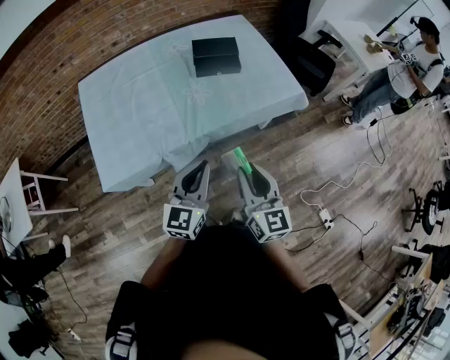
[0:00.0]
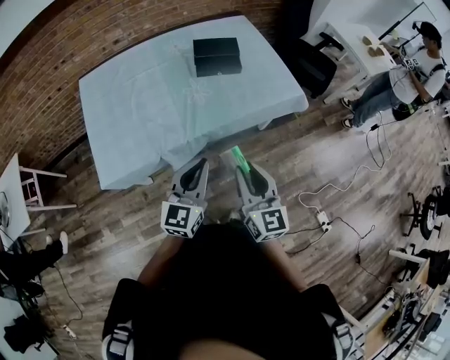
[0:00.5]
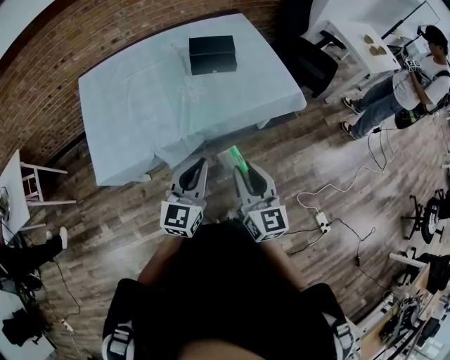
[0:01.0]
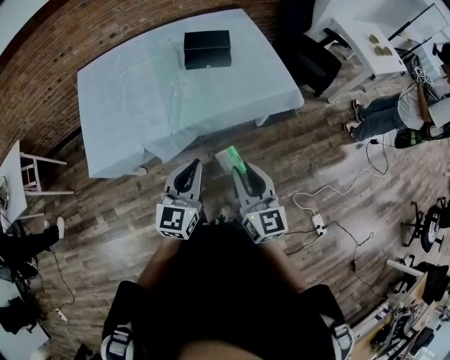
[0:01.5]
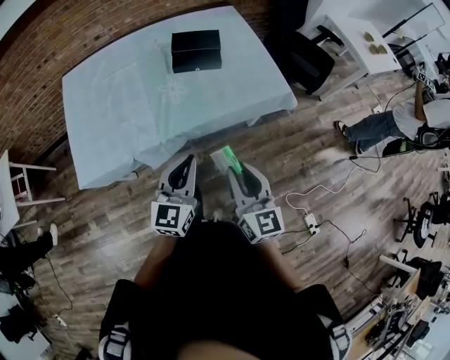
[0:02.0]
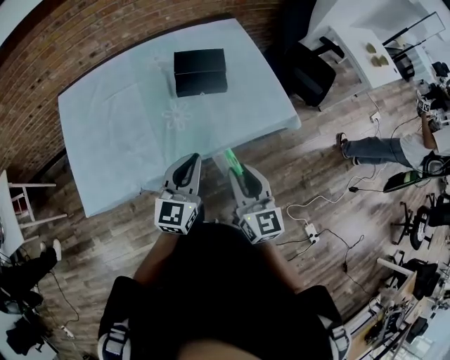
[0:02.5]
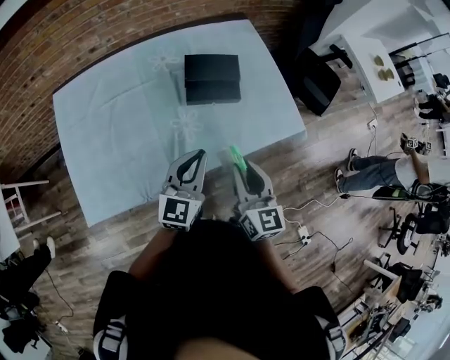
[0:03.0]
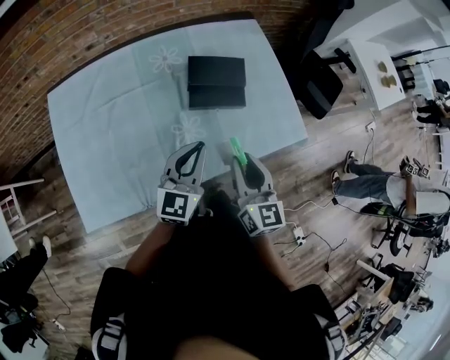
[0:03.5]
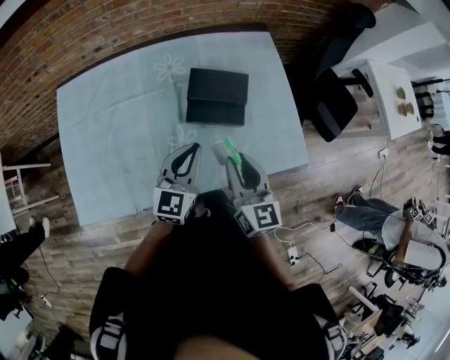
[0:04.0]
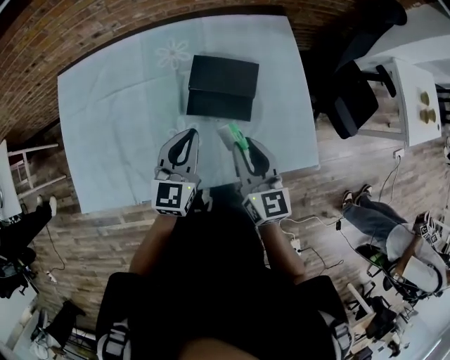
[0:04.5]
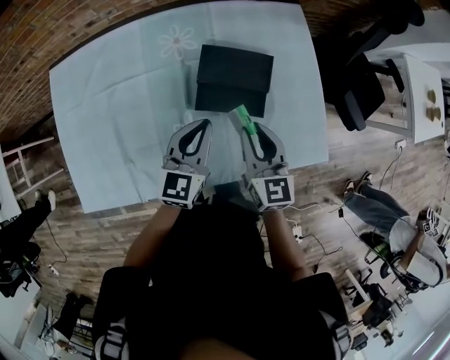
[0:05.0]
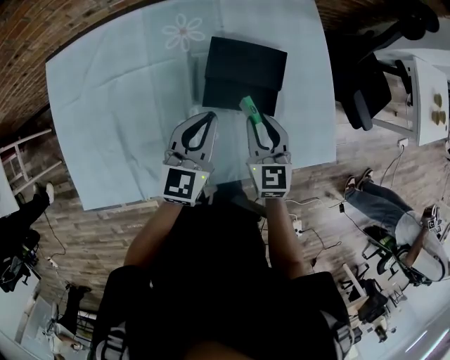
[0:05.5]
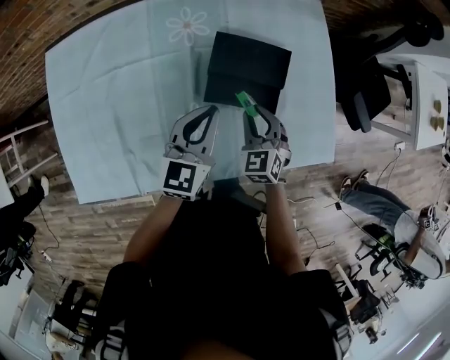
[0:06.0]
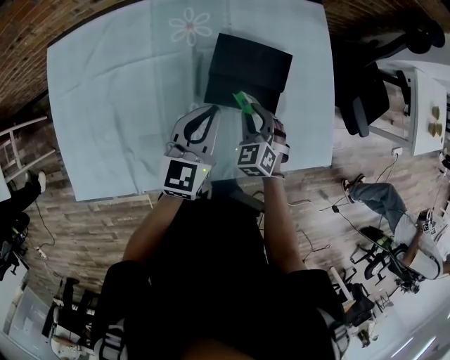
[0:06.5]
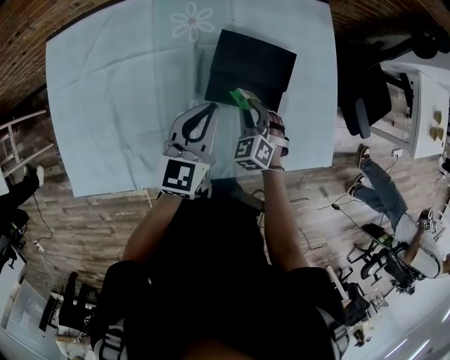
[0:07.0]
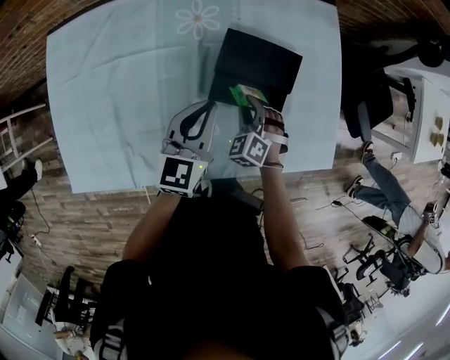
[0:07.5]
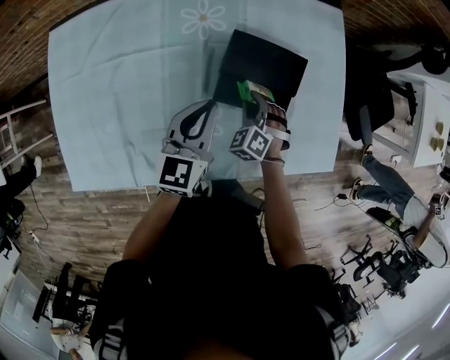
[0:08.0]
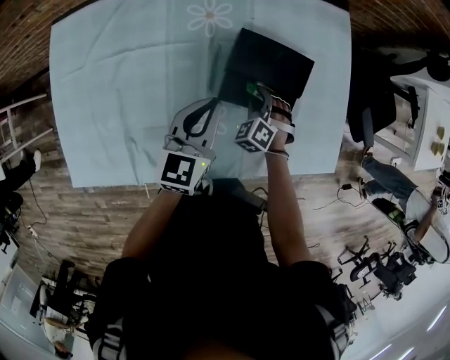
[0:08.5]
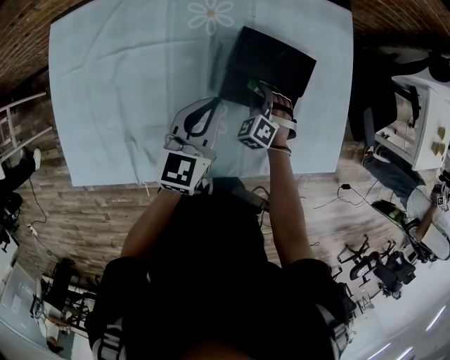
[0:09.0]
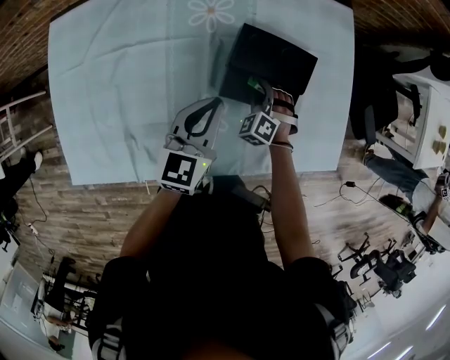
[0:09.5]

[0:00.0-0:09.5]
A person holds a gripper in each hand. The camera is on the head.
0:00.0 to 0:02.0: The left gripper goes about 10 cm to the right and forward. Meanwhile the right gripper heads to the right, covering approximately 10 cm.
0:02.0 to 0:04.0: The grippers both shift forward by approximately 35 cm.
0:04.0 to 0:05.5: The right gripper shifts approximately 20 cm downward and forward, and turns by about 20 degrees. Meanwhile the left gripper heads forward and downward, covering some 15 cm.
0:05.5 to 0:07.5: The right gripper is displaced downward by approximately 10 cm, and twists approximately 40 degrees counterclockwise, seen from behind.
0:07.5 to 0:09.5: The right gripper heads downward, covering about 5 cm.

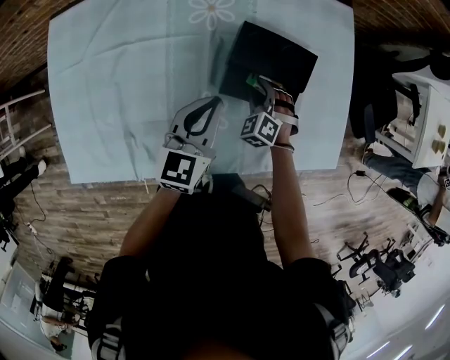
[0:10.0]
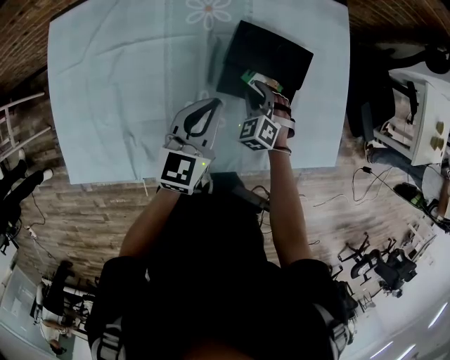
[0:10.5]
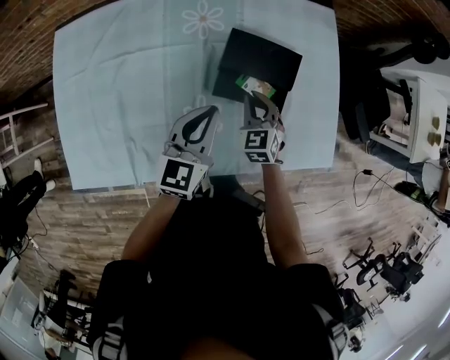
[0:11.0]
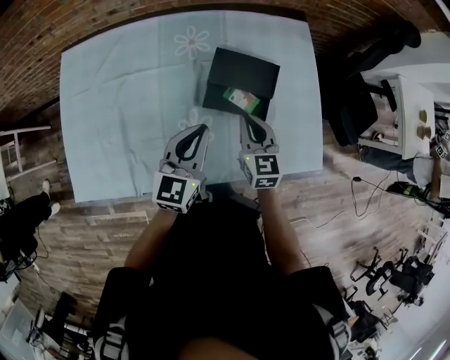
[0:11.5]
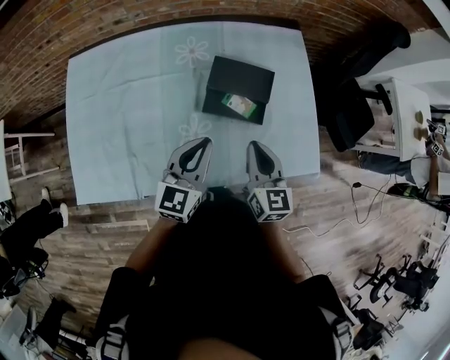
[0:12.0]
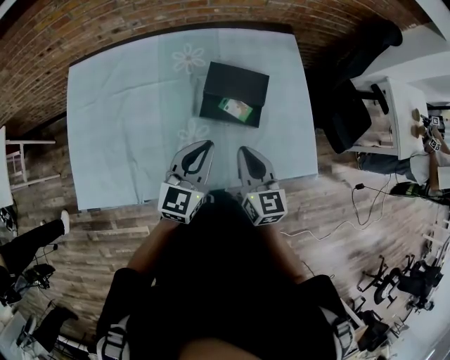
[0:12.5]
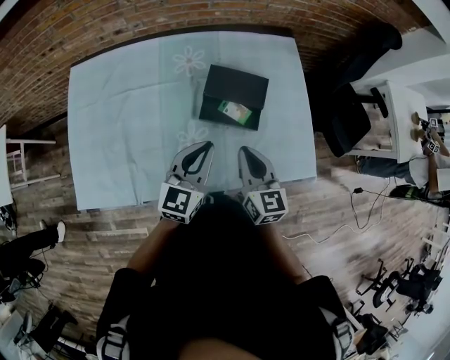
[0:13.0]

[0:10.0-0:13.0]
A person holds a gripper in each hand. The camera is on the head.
0:10.0 to 0:11.5: The right gripper moves upward and backward, some 20 cm, rotates around the line of its fingers by some 50 degrees, clockwise from behind, and closes. The left gripper is displaced backward and upward by about 10 cm.
0:11.5 to 0:13.0: The right gripper travels backward and upward by roughly 10 cm; the left gripper moves approximately 5 cm.

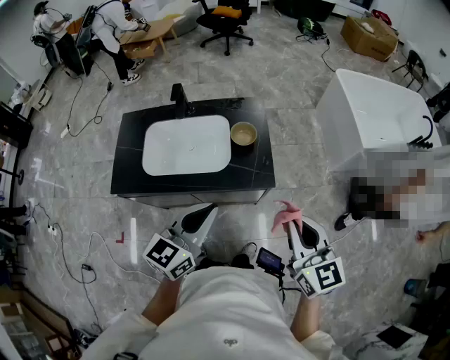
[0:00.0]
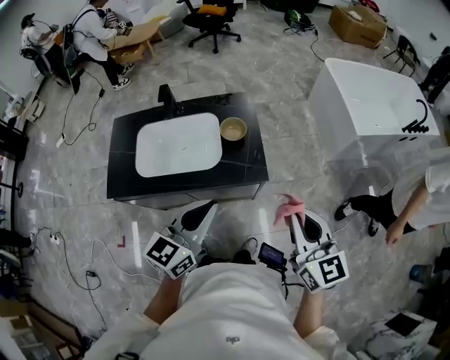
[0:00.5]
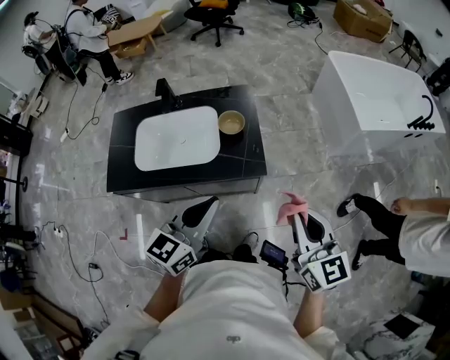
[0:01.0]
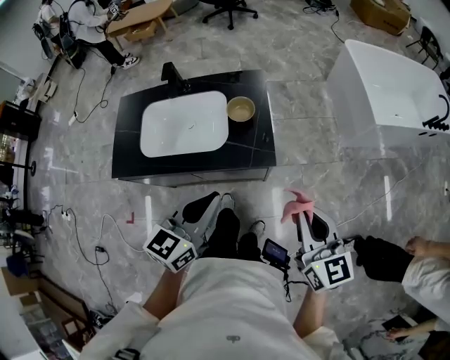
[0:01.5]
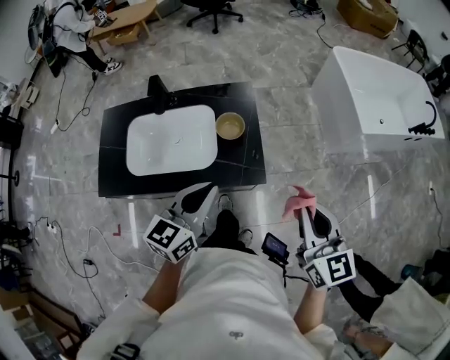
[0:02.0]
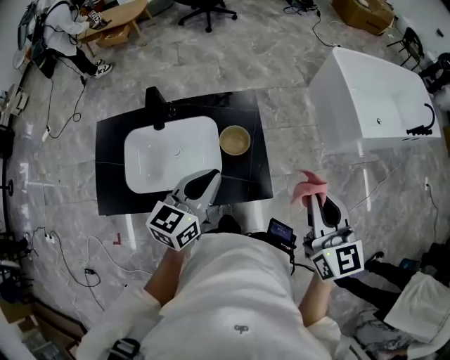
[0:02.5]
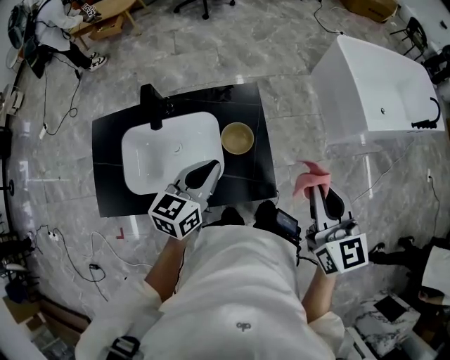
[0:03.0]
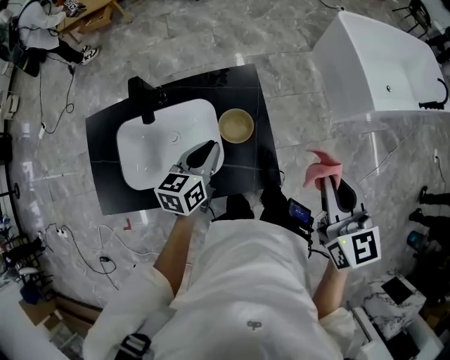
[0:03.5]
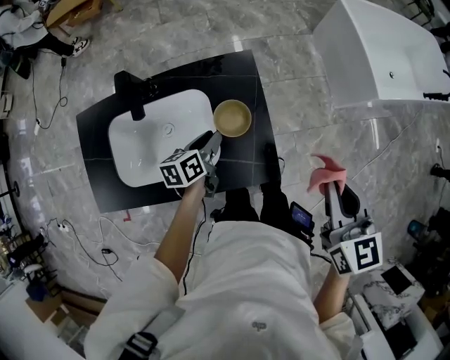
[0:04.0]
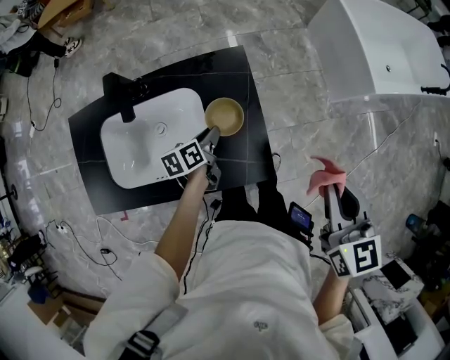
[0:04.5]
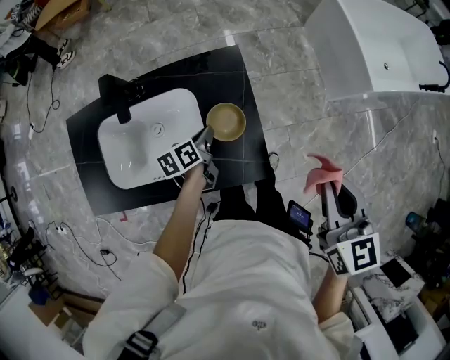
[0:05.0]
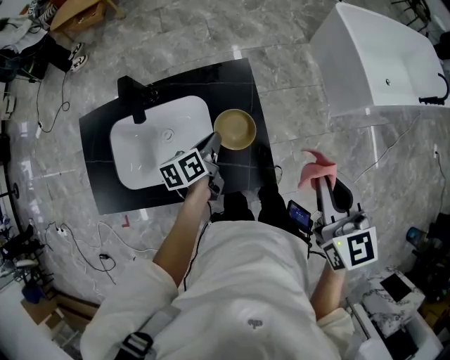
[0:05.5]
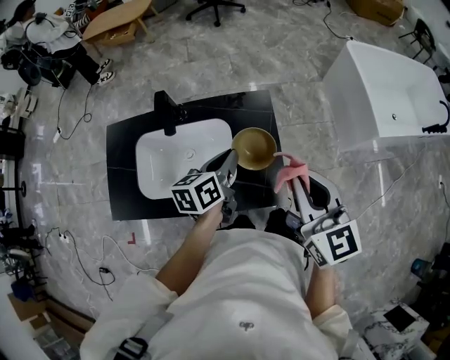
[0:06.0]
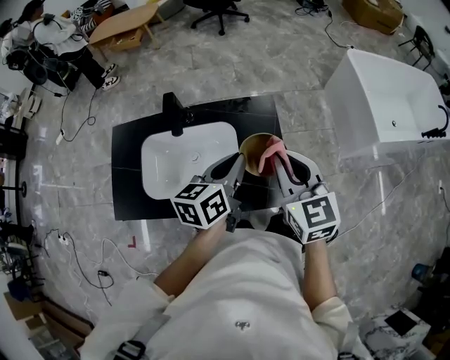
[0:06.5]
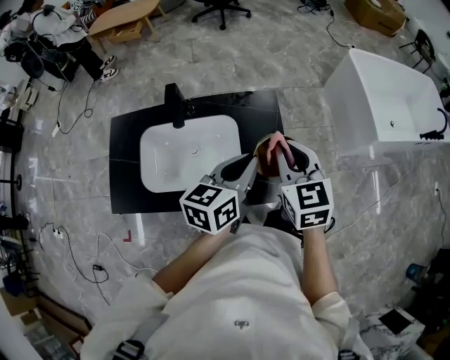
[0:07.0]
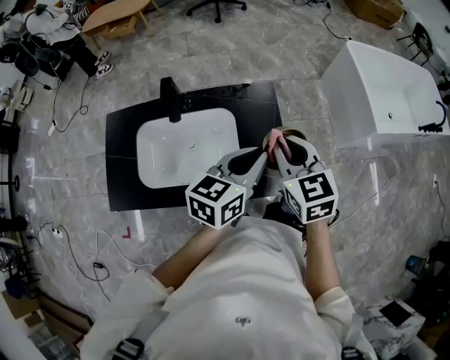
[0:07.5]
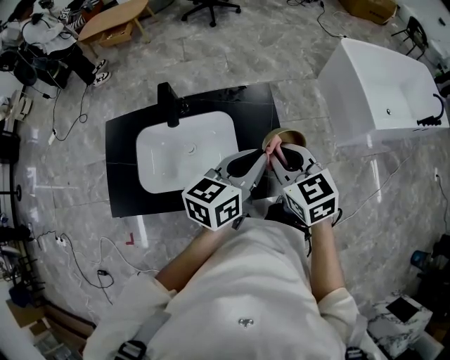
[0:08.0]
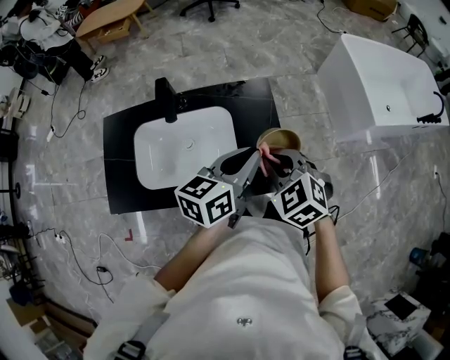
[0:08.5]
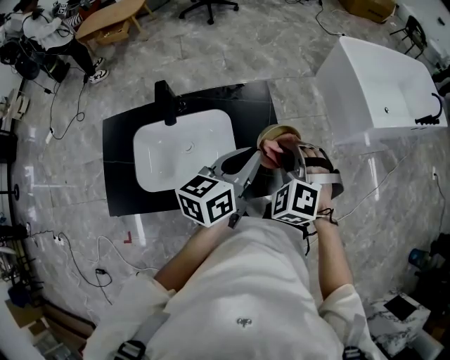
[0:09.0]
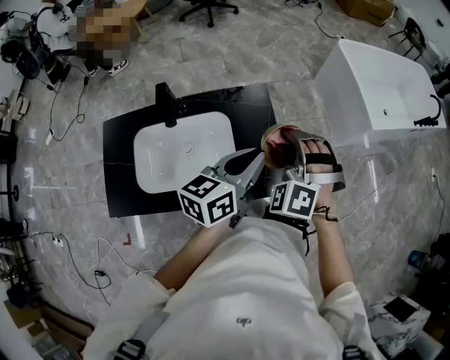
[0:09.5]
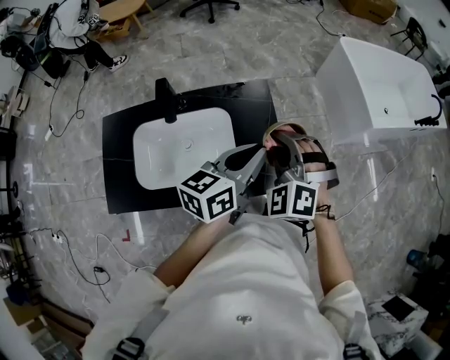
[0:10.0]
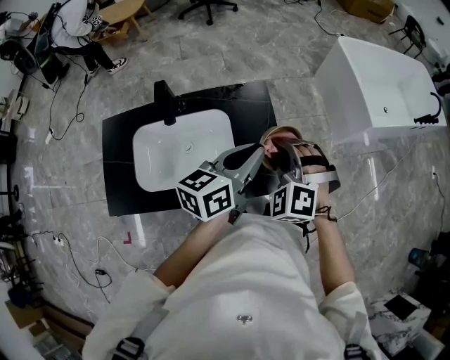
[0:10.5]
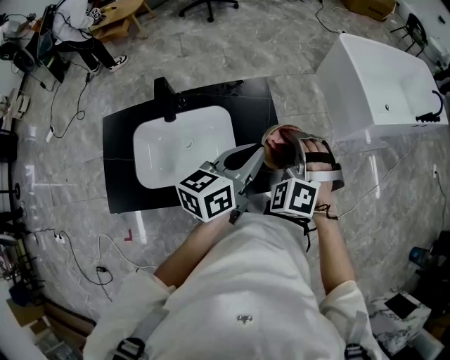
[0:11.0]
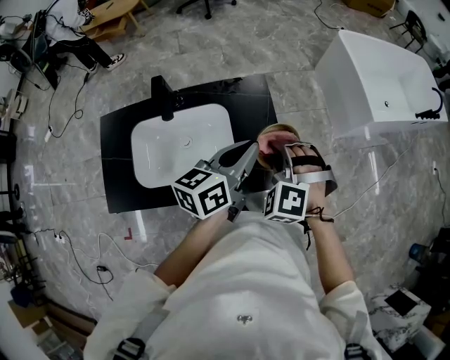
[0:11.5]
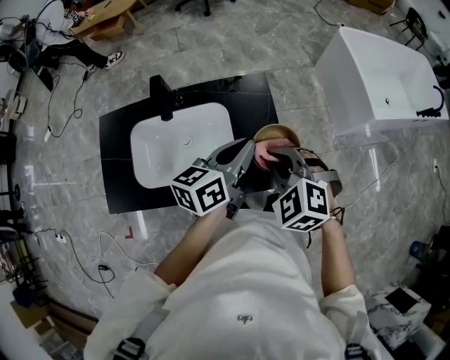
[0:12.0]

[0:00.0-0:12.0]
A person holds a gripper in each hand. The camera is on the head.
0:00.0 to 0:02.0: The right gripper travels forward and to the right by some 10 cm. The left gripper shifts roughly 10 cm forward.
0:02.0 to 0:04.0: The left gripper moves downward and forward, about 30 cm, and swivels approximately 40 degrees, while the right gripper shifts approximately 15 cm forward.
0:04.0 to 0:06.0: The left gripper shifts approximately 15 cm upward. The right gripper moves to the left, approximately 10 cm.
0:06.0 to 0:08.0: The right gripper goes approximately 10 cm downward and to the left. The left gripper shifts roughly 10 cm upward, to the right and backward, and swivels approximately 20 degrees.
0:08.0 to 0:10.0: The right gripper rolls counterclockwise, seen from behind, by approximately 50 degrees.
0:10.0 to 0:12.0: The right gripper moves about 5 cm, and swivels some 20 degrees.

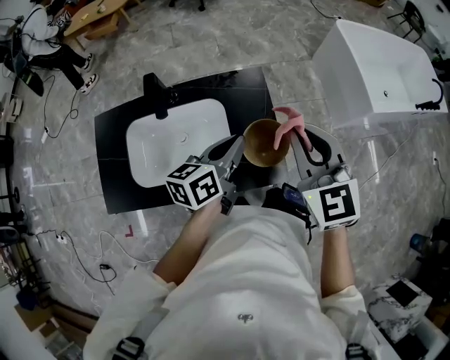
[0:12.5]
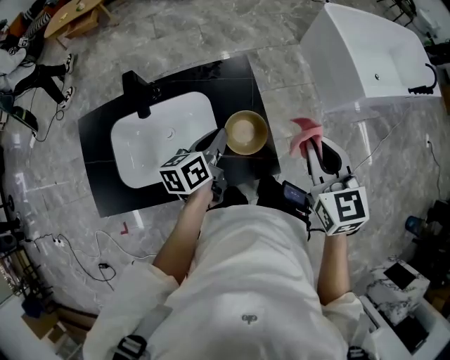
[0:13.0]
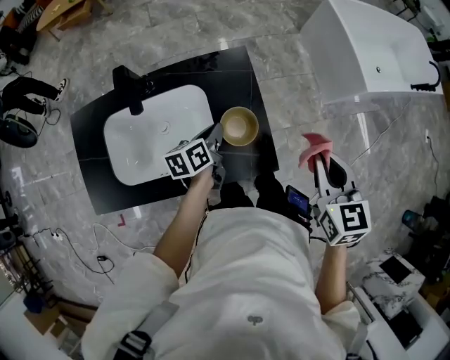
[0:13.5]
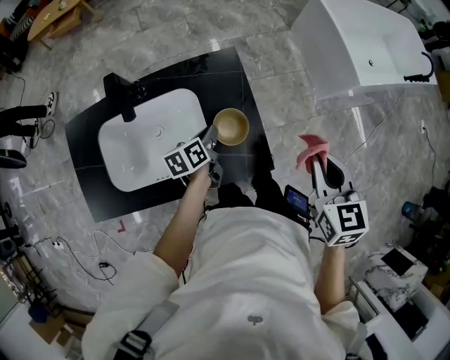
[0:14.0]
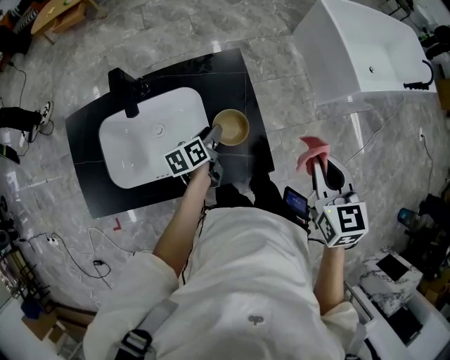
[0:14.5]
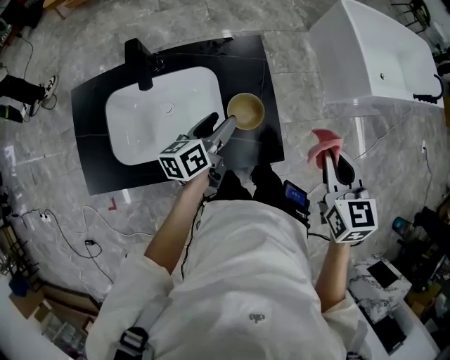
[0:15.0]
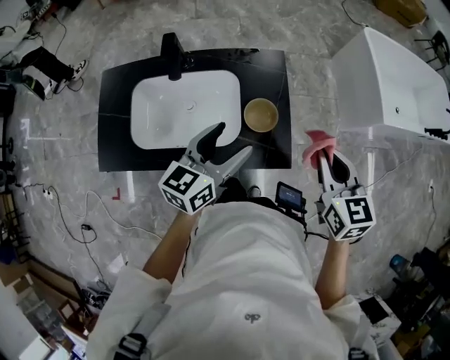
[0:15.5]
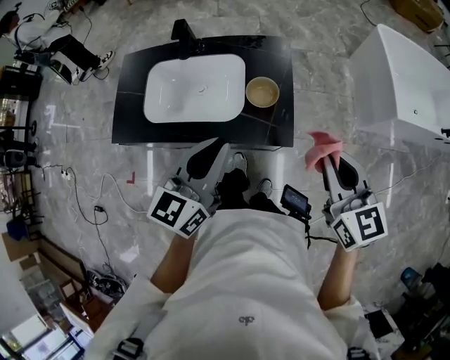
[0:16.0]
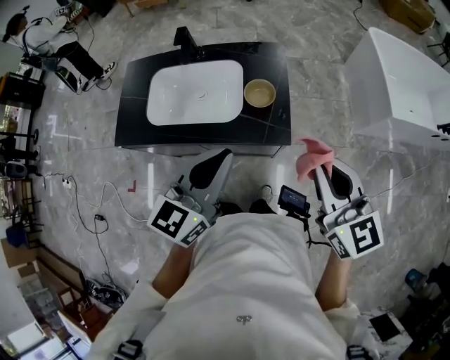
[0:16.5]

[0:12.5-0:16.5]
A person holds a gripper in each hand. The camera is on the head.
0:12.5 to 0:14.5: The right gripper travels to the right and downward by about 15 cm, and swivels some 30 degrees, while the left gripper travels downward by roughly 20 cm, rotates approximately 30 degrees, and opens its fingers.
0:14.5 to 0:16.5: The left gripper travels upward and backward by some 40 cm, rotates around the line of its fingers by approximately 50 degrees, clockwise from behind, and closes. The right gripper travels backward and upward by about 20 cm, and rotates approximately 40 degrees.
